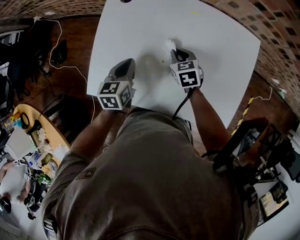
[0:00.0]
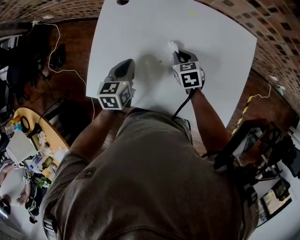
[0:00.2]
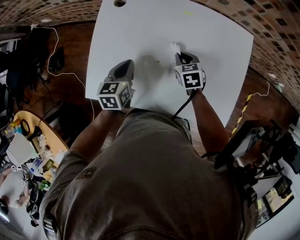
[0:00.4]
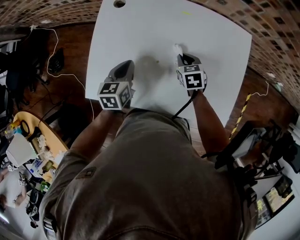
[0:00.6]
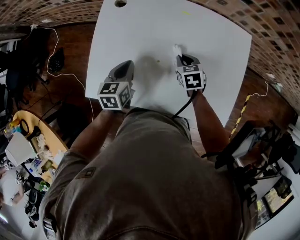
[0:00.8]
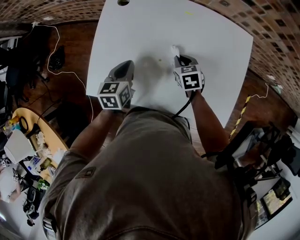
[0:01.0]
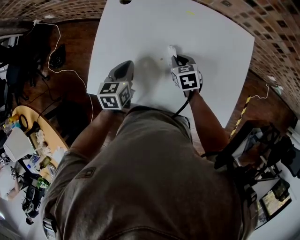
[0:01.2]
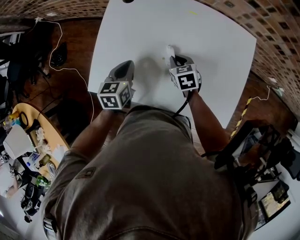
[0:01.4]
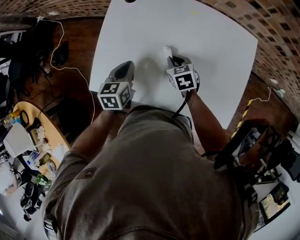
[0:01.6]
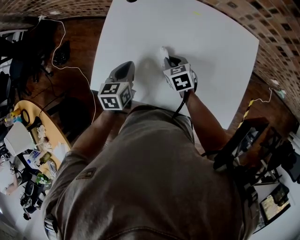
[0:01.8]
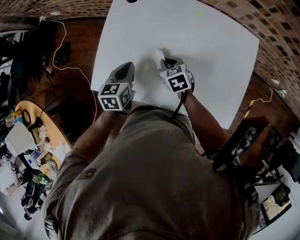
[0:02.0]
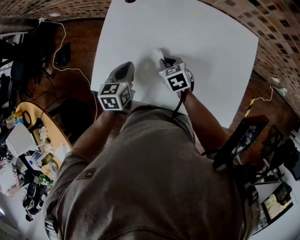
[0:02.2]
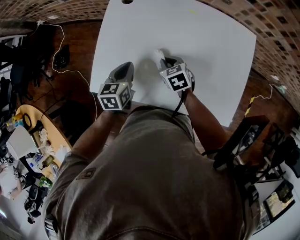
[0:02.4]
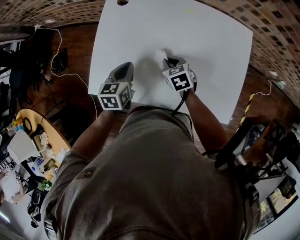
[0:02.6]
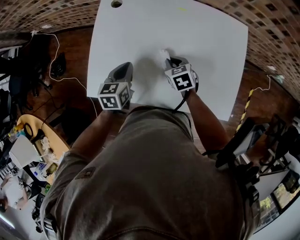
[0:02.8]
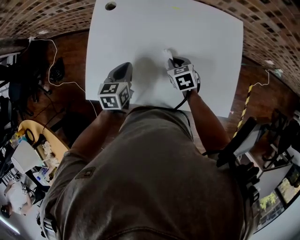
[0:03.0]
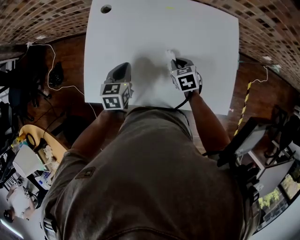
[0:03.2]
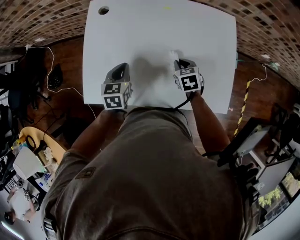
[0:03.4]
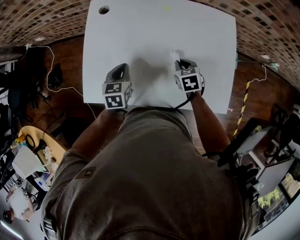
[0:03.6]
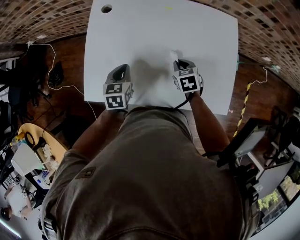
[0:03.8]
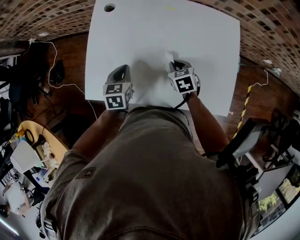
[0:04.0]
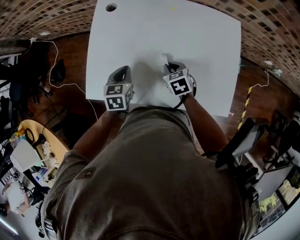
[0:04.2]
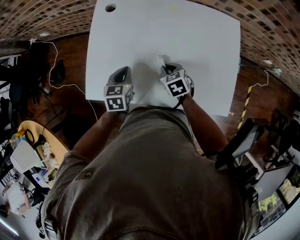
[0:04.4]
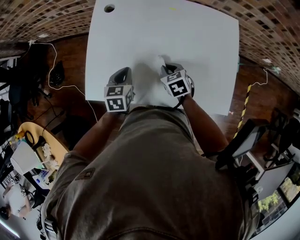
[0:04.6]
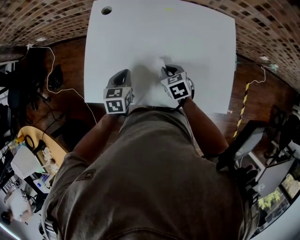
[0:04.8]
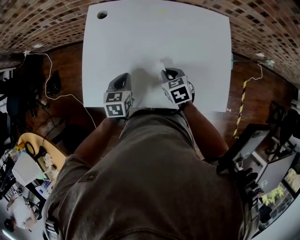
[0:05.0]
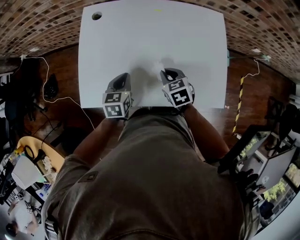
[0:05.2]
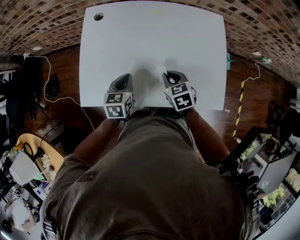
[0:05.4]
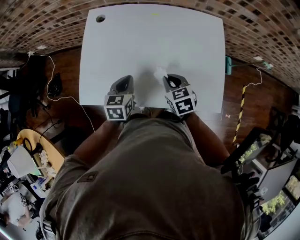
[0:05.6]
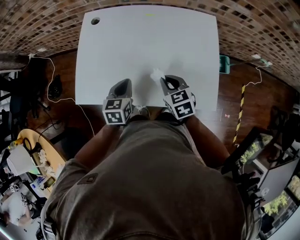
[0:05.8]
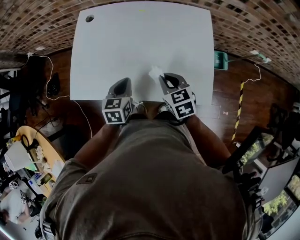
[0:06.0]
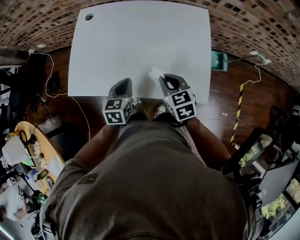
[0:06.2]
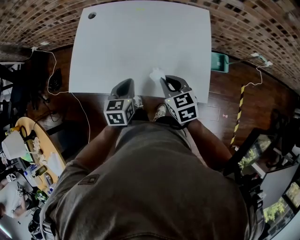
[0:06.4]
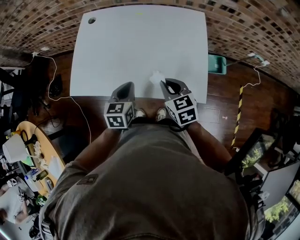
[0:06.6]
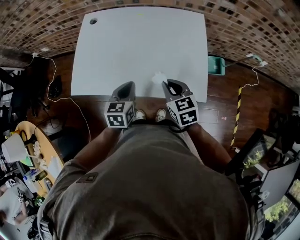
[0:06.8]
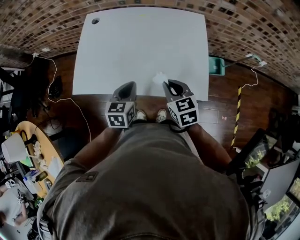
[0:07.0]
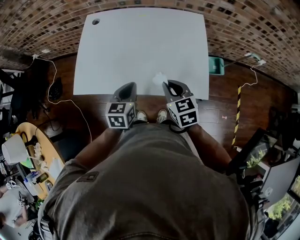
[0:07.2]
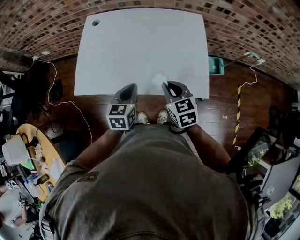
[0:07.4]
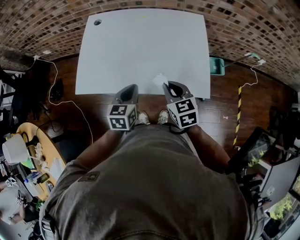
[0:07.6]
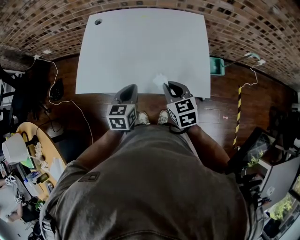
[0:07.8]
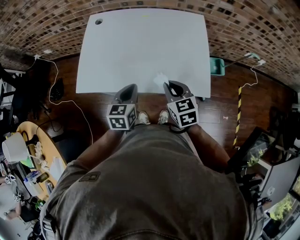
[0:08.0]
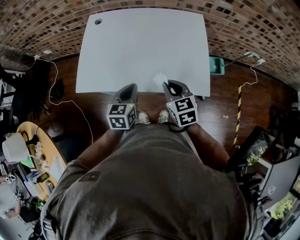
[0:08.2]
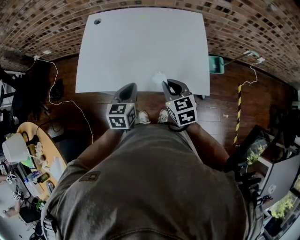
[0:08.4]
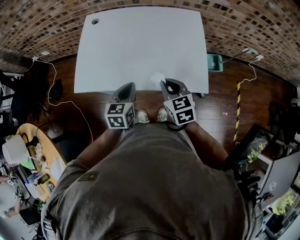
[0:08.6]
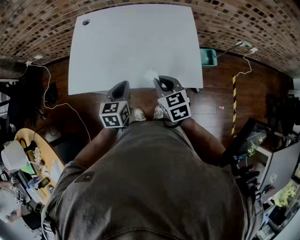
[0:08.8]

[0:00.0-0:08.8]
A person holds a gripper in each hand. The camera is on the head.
0:00.0 to 0:01.4: The grippers stay close to where they were, moving slightly.
0:01.4 to 0:03.0: The grippers stay close to where they were, moving slightly.
0:03.0 to 0:04.4: The right gripper goes to the right and returns, roughly 5 cm each way.
0:04.4 to 0:05.8: The right gripper heads upward, to the right and backward, covering about 15 cm; the left gripper goes roughly 10 cm to the right and backward.
0:05.8 to 0:07.4: The left gripper travels backward by approximately 10 cm; the right gripper moves backward and upward, about 10 cm.
0:07.4 to 0:08.8: There are only small adjustments of the grippers.

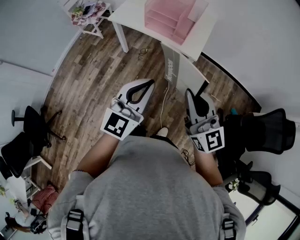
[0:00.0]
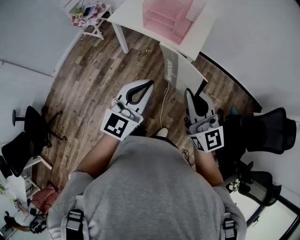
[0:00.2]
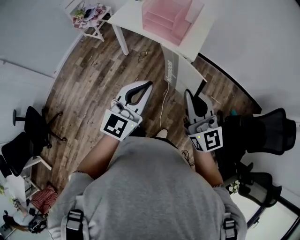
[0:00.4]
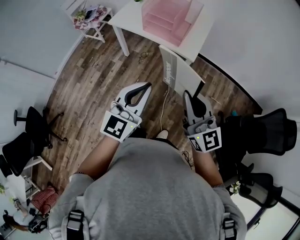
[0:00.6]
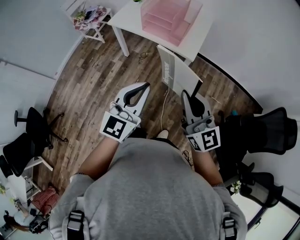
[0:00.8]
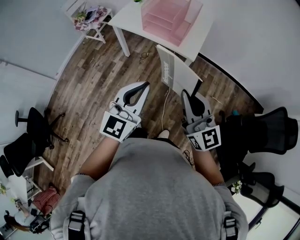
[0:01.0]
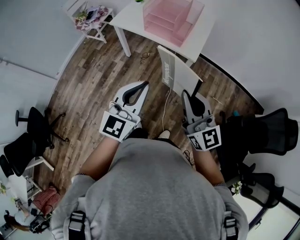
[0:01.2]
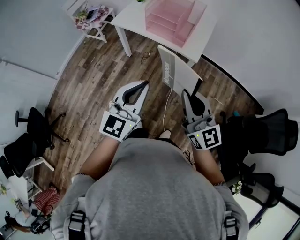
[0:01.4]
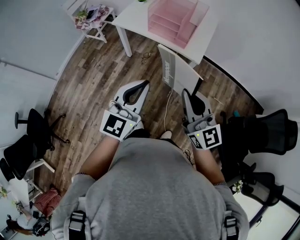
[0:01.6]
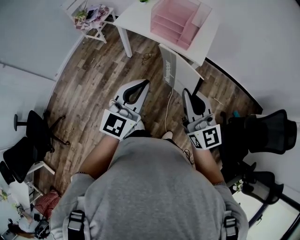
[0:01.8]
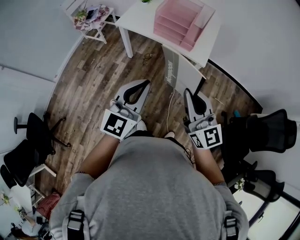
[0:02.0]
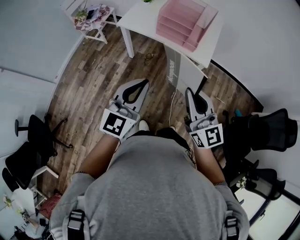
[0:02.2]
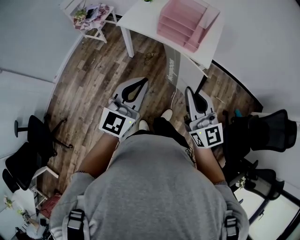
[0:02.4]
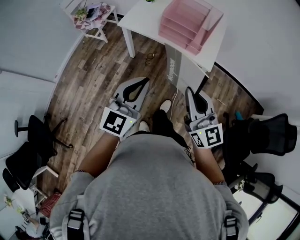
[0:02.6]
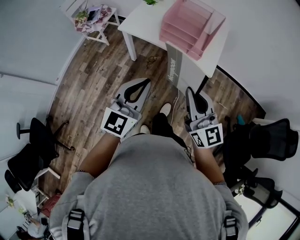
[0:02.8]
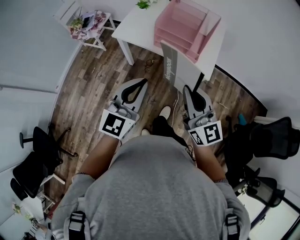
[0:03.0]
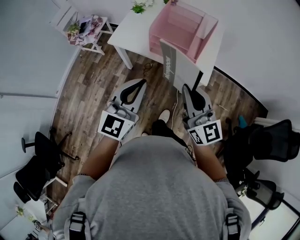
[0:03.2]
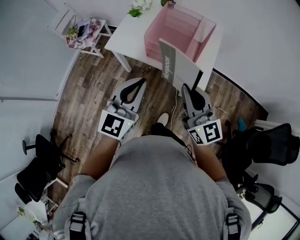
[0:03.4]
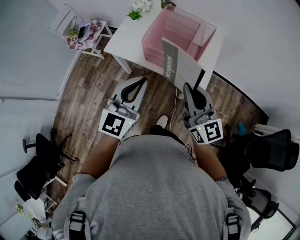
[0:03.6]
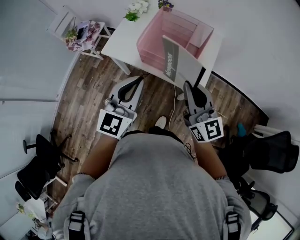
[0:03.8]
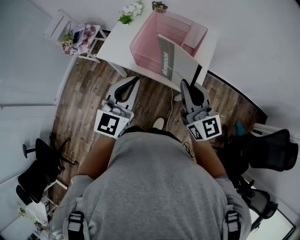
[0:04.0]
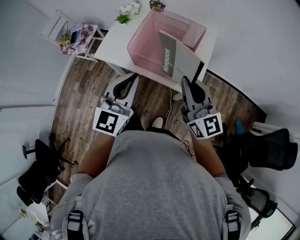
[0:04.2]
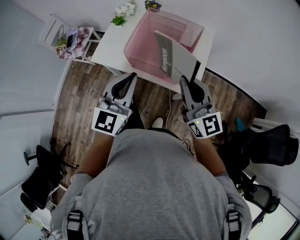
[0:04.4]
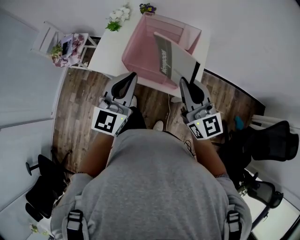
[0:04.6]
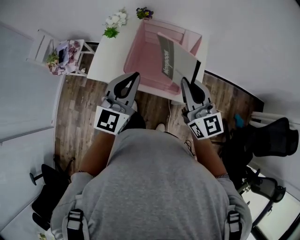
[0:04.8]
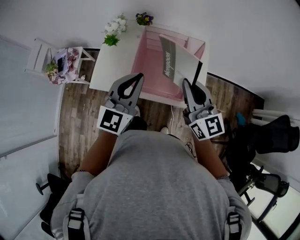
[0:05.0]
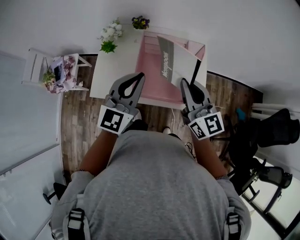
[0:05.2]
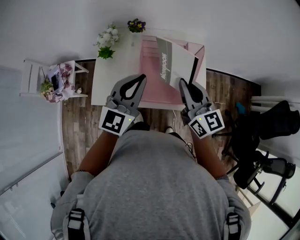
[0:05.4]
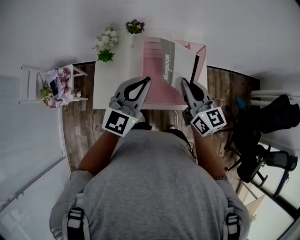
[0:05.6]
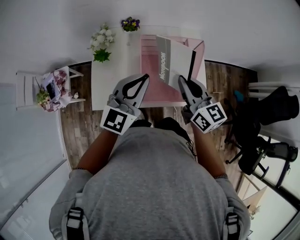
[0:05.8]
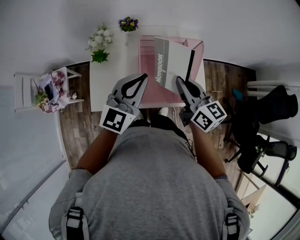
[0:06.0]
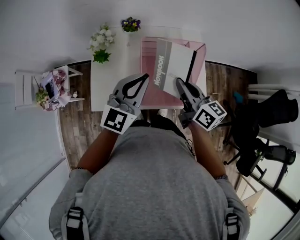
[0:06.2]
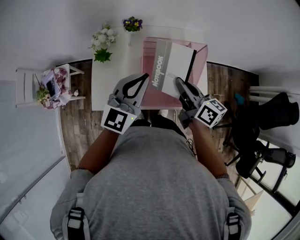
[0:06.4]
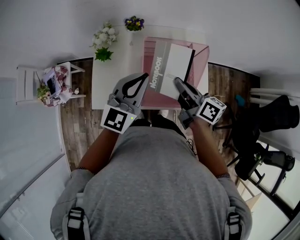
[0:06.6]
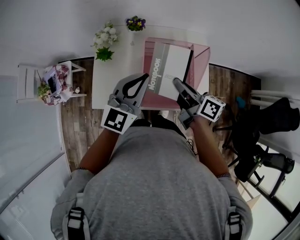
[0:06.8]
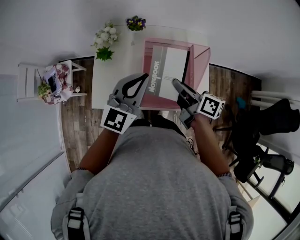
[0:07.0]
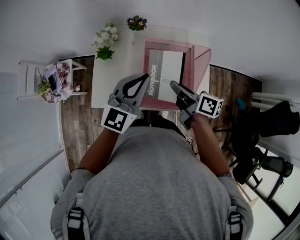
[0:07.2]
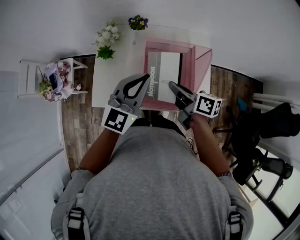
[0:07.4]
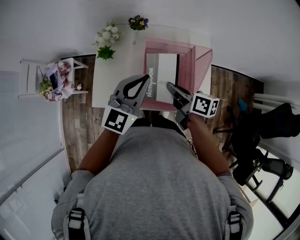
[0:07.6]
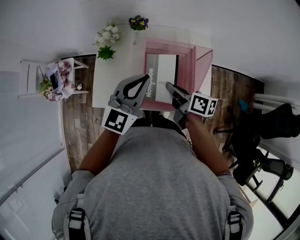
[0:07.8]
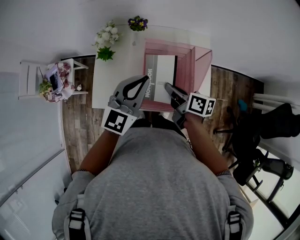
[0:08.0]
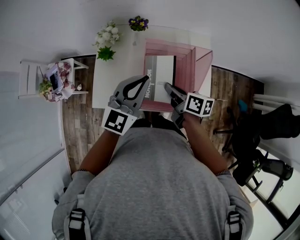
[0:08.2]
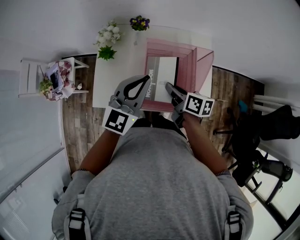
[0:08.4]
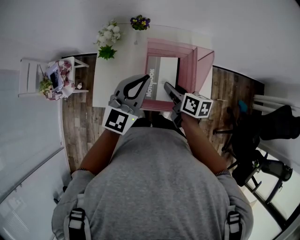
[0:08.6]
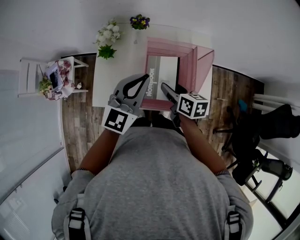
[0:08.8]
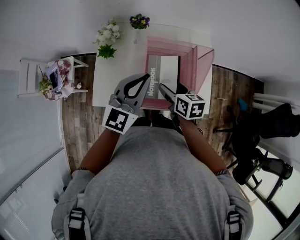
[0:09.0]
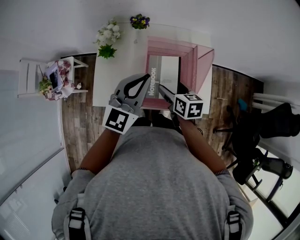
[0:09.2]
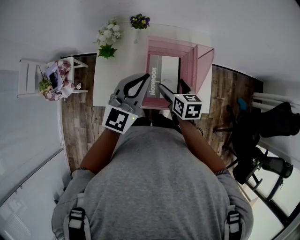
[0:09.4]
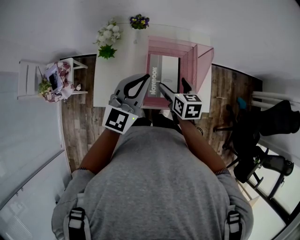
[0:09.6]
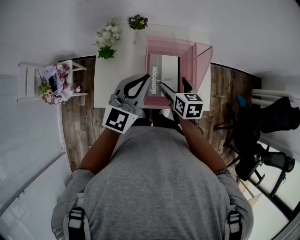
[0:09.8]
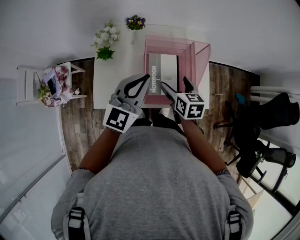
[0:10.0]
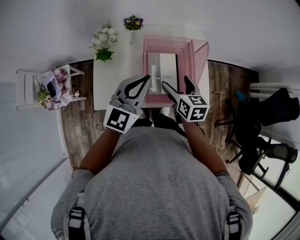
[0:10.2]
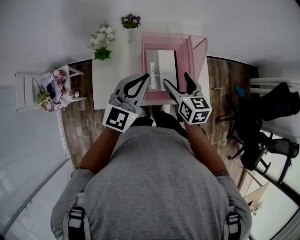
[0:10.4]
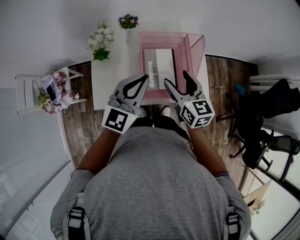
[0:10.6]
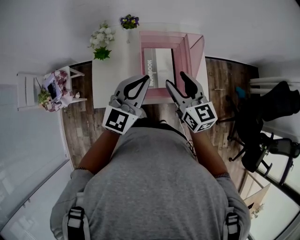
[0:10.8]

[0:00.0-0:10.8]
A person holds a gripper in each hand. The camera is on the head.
0:00.0 to 0:01.6: The grippers stay close to where they were, moving slightly.
0:01.6 to 0:03.0: Both grippers travel together forward and to the left, about 20 cm.
0:03.0 to 0:04.6: The left gripper is displaced forward by roughly 25 cm, while the right gripper moves forward and to the right, about 25 cm.
0:04.6 to 0:06.2: The left gripper heads forward, covering approximately 20 cm, and changes its angle by some 30 degrees. Meanwhile the right gripper moves forward, to the left and downward, some 20 cm, and changes its angle by about 40 degrees.
0:06.2 to 0:07.8: The right gripper is displaced downward by approximately 10 cm, and rotates approximately 30 degrees.
0:07.8 to 0:09.2: The right gripper swivels roughly 30 degrees, and opens its fingers.
0:09.2 to 0:10.8: The left gripper travels backward by approximately 5 cm. The right gripper heads upward, covering about 10 cm, and turns by roughly 30 degrees.

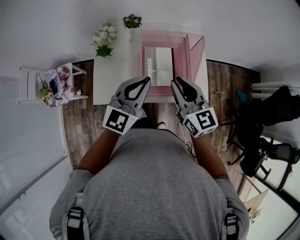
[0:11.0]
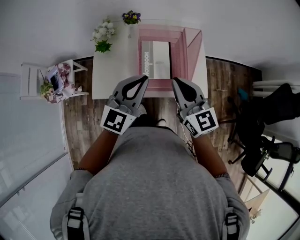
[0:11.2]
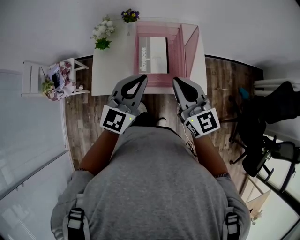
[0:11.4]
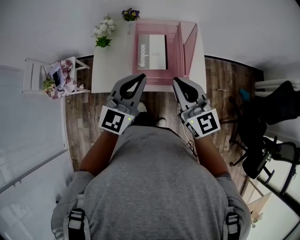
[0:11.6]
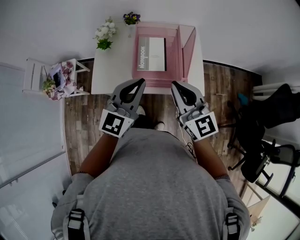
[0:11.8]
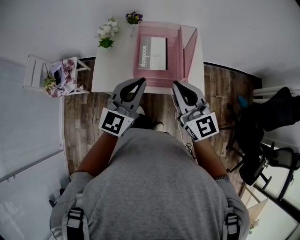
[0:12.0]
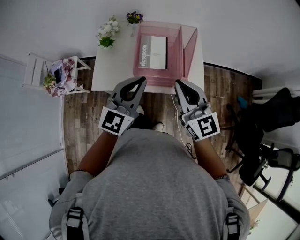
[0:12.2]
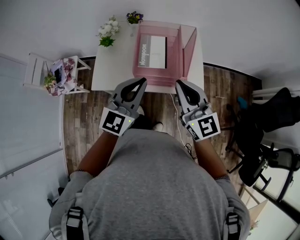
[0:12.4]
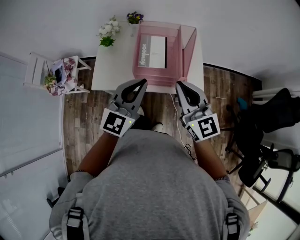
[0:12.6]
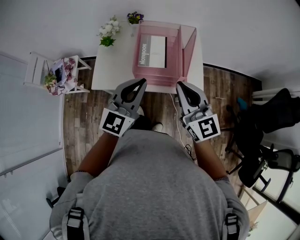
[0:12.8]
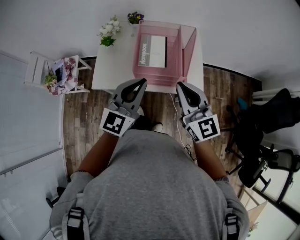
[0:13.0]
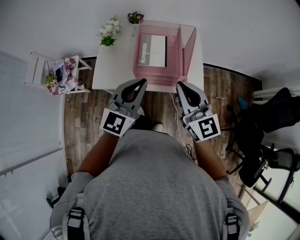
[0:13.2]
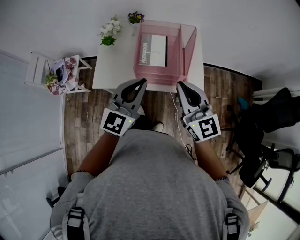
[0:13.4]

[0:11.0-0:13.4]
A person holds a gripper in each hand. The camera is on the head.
0:11.0 to 0:12.2: The grippers both shift backward by about 10 cm.
0:12.2 to 0:13.4: There are only small adjustments of the grippers.

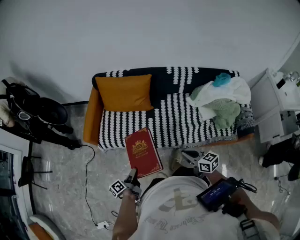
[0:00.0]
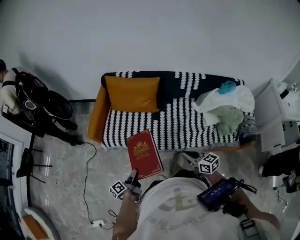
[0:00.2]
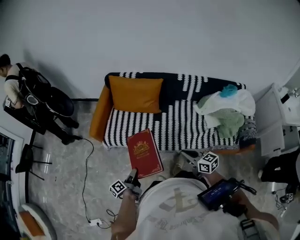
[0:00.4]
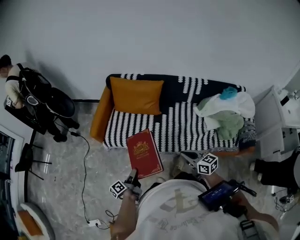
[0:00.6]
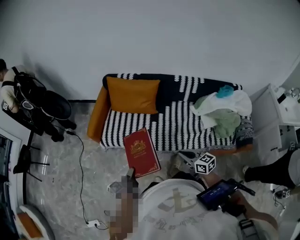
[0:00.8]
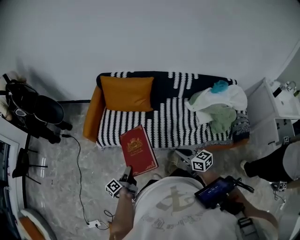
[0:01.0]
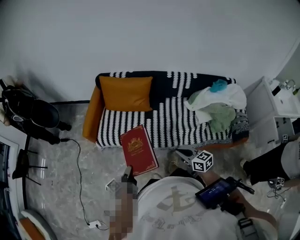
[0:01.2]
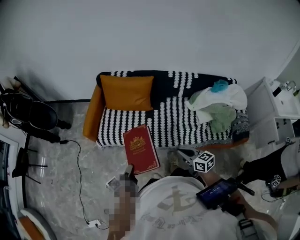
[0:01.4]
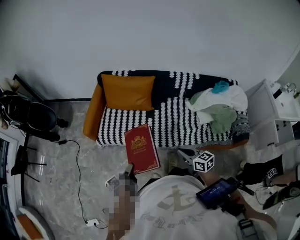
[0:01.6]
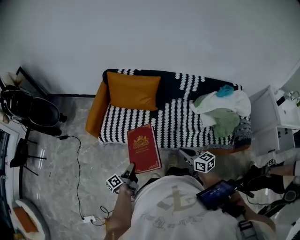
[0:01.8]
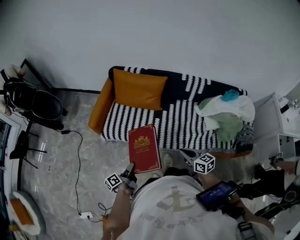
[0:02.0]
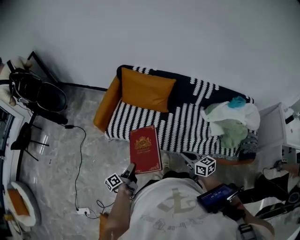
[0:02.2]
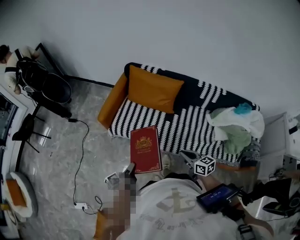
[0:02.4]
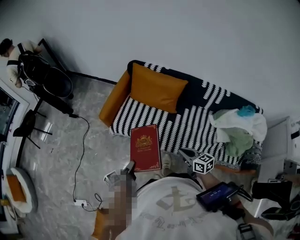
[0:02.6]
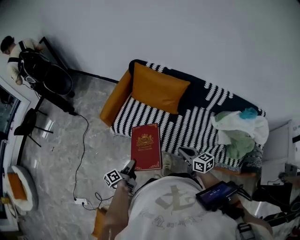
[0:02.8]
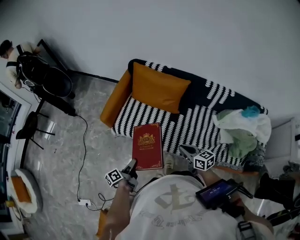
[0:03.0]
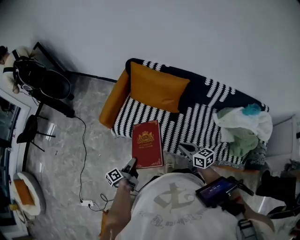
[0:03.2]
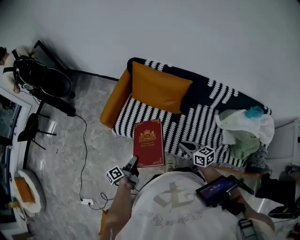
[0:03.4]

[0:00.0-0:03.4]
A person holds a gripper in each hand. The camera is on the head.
0:01.6 to 0:03.4: The right gripper changes place by approximately 20 cm.
